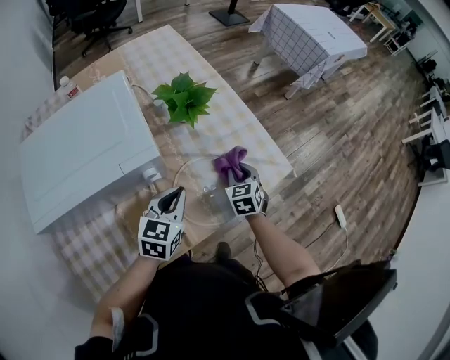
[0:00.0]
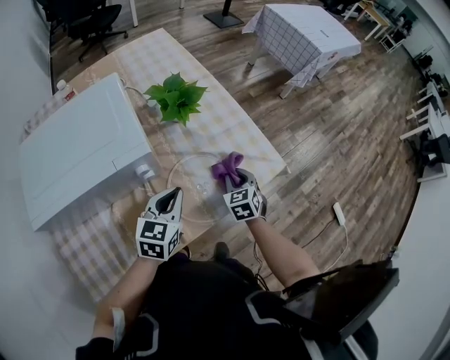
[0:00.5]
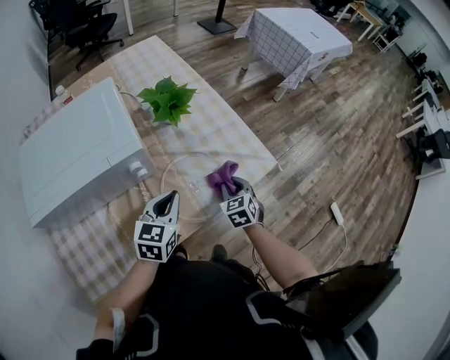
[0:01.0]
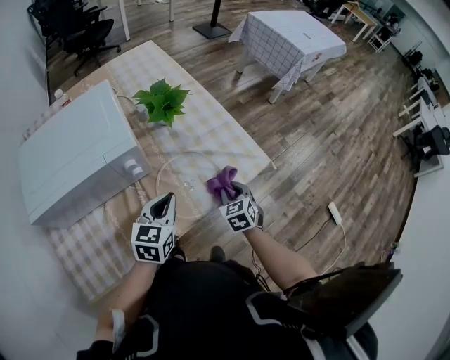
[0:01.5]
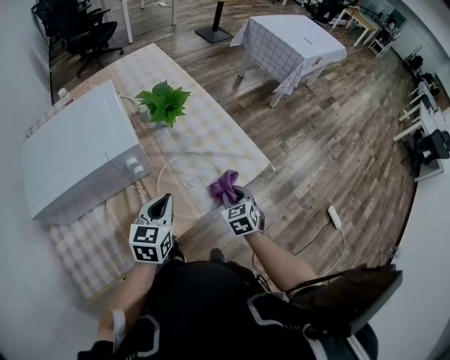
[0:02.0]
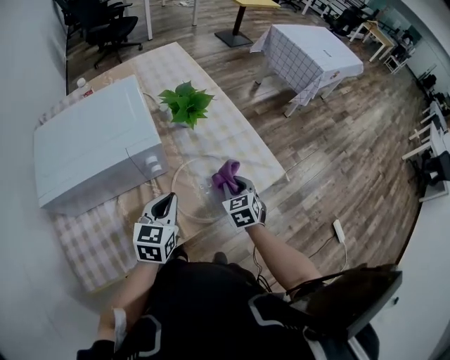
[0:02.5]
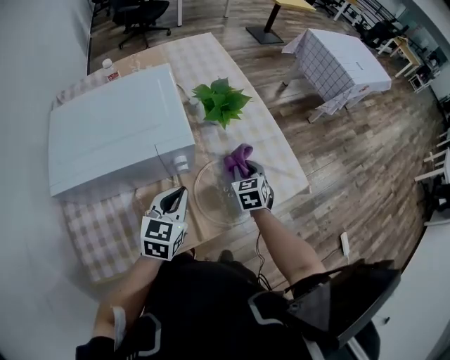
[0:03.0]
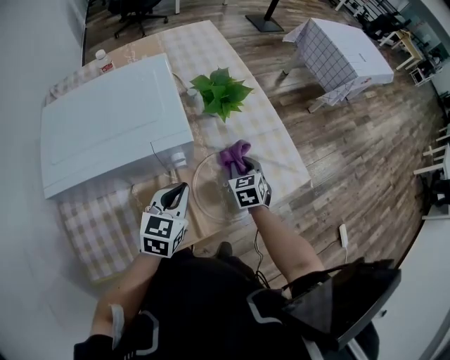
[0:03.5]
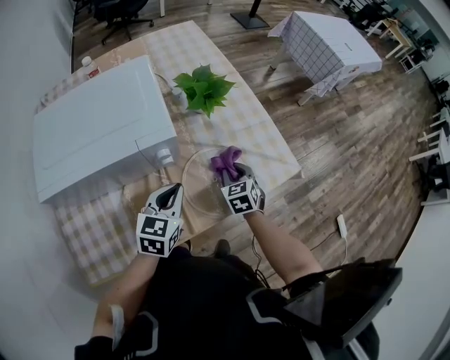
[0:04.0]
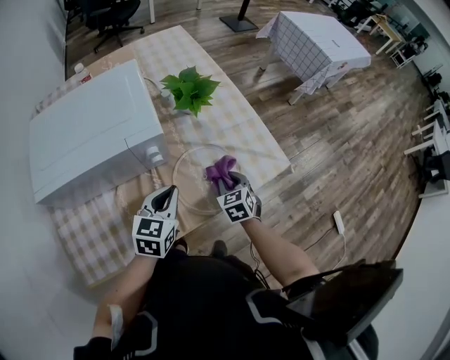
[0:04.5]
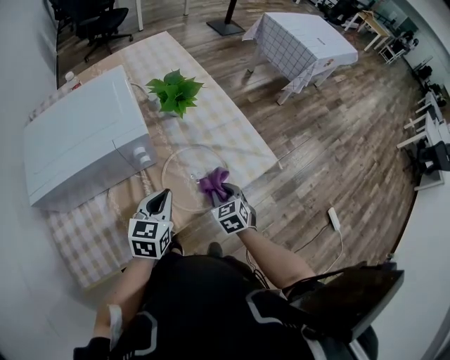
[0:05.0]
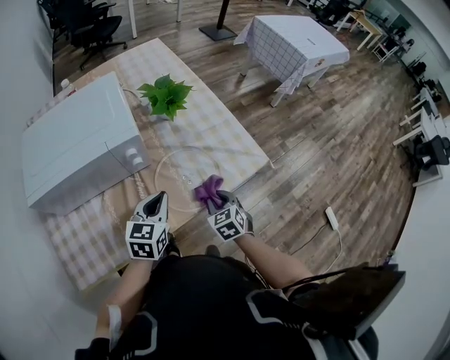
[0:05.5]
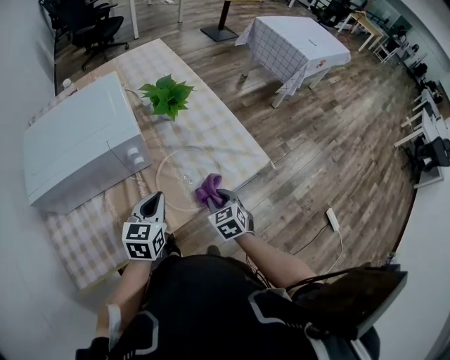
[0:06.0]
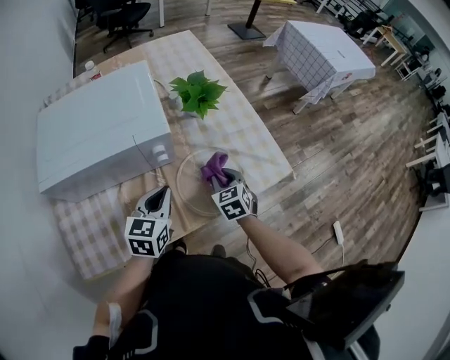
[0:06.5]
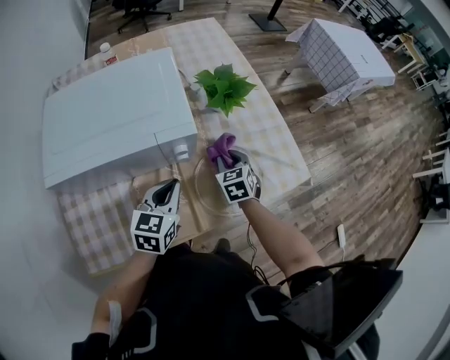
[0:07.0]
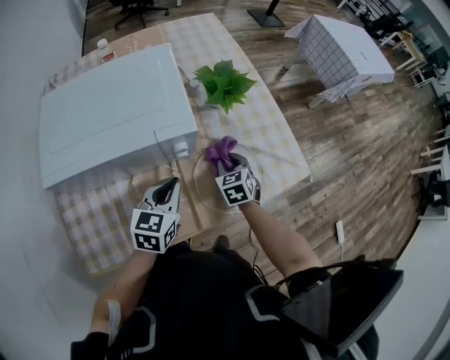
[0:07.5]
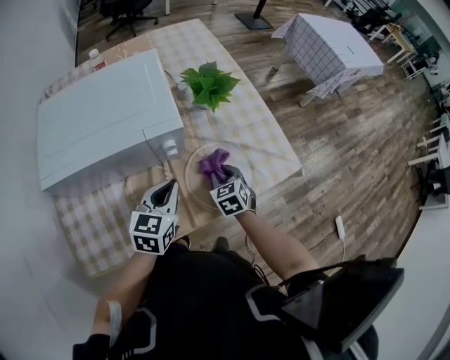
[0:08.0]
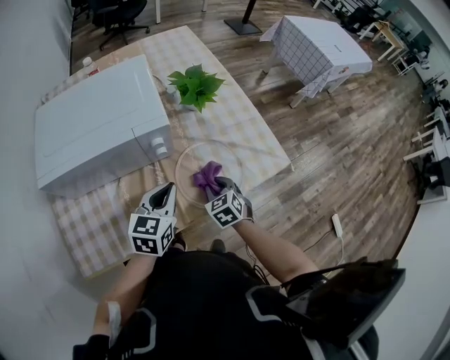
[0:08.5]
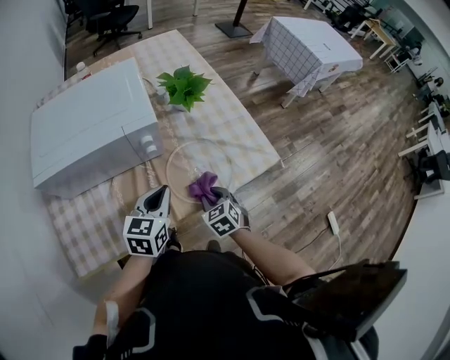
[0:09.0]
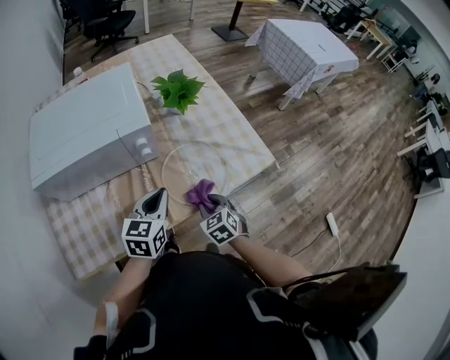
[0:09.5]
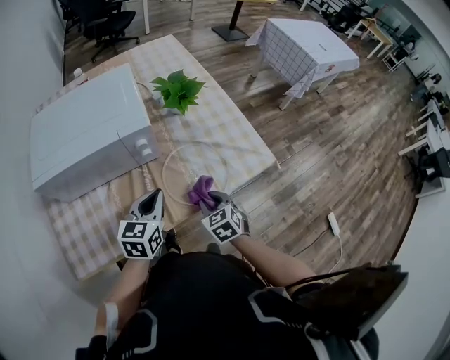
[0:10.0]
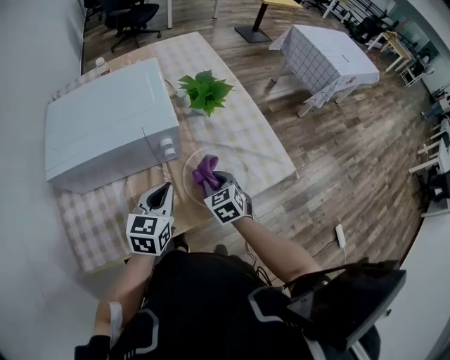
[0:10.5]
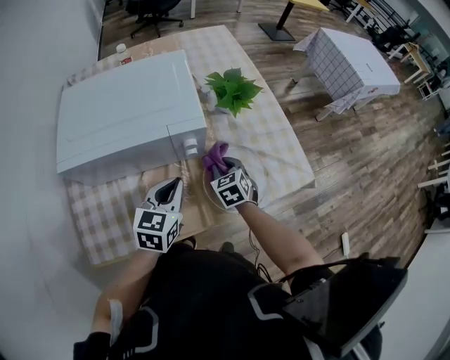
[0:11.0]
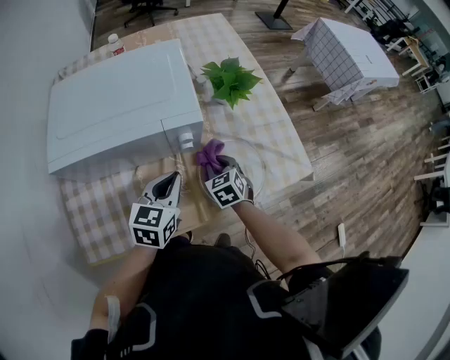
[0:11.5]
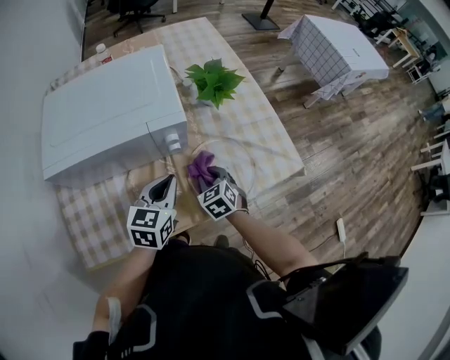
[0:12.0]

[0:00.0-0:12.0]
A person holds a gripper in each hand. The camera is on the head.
0:00.0 to 0:02.0: The right gripper travels backward and to the right by some 10 cm, while the left gripper travels backward by about 5 cm.
0:02.0 to 0:04.0: The right gripper travels to the left and forward by roughly 15 cm; the left gripper goes approximately 5 cm to the left.
0:04.0 to 0:06.0: The left gripper shifts by about 5 cm. Meanwhile the right gripper heads backward, covering roughly 10 cm.
0:06.0 to 0:08.0: The left gripper goes roughly 5 cm to the left. Meanwhile the right gripper goes approximately 15 cm to the left and forward.
0:08.0 to 0:10.0: The left gripper ends up roughly 5 cm from where it was. Meanwhile the right gripper moves backward, approximately 10 cm.
0:10.0 to 0:12.0: The left gripper moves roughly 5 cm. Meanwhile the right gripper heads forward and to the left, covering about 15 cm.

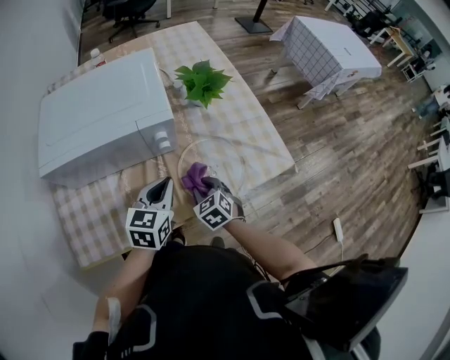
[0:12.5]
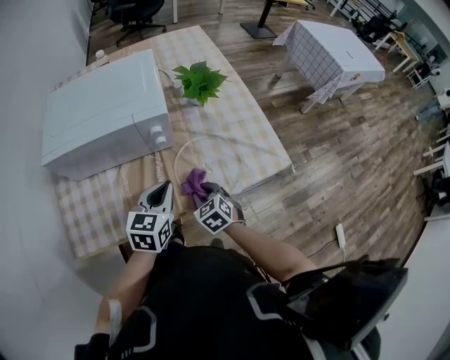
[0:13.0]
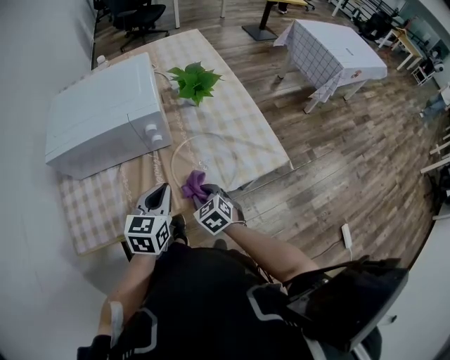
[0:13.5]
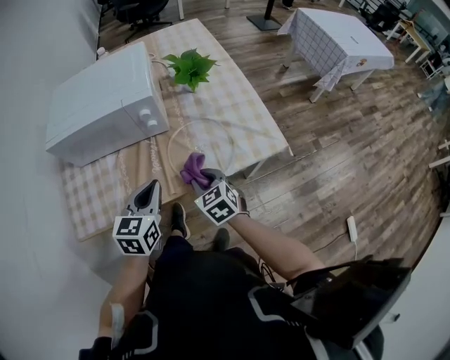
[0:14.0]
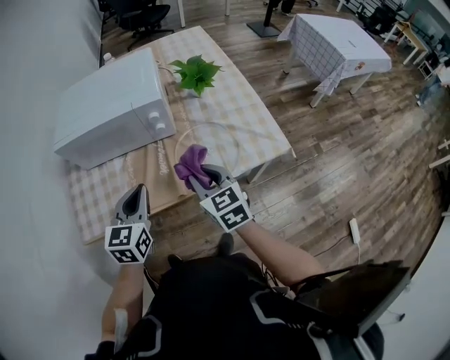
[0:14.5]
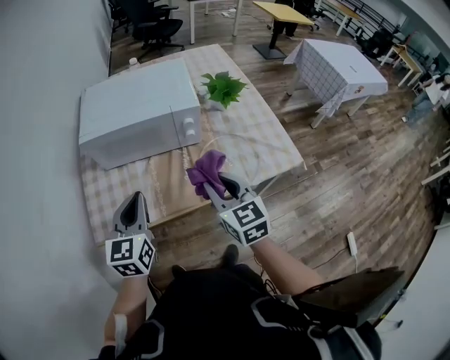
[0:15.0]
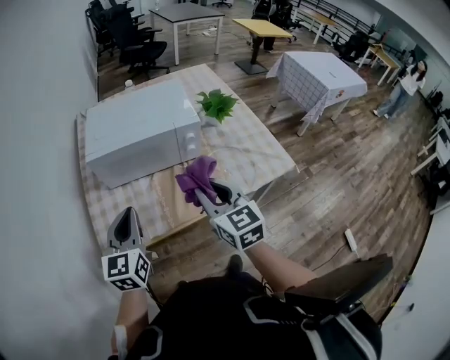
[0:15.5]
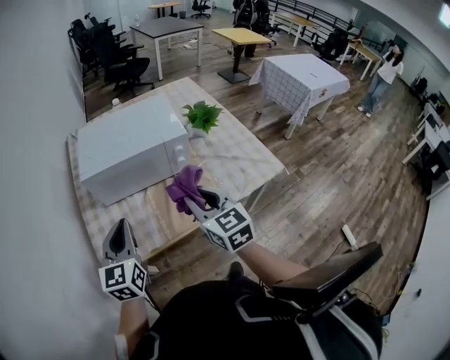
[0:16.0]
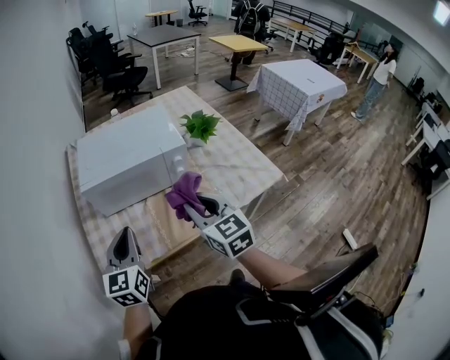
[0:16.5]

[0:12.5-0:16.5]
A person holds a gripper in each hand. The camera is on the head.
0:12.5 to 0:14.5: The right gripper travels upward and backward by roughly 20 cm, and swivels about 30 degrees. The left gripper shifts some 15 cm backward and upward.
0:14.5 to 0:16.5: The left gripper heads to the left and upward, covering some 20 cm. Meanwhile the right gripper is displaced upward and to the left by approximately 20 cm.

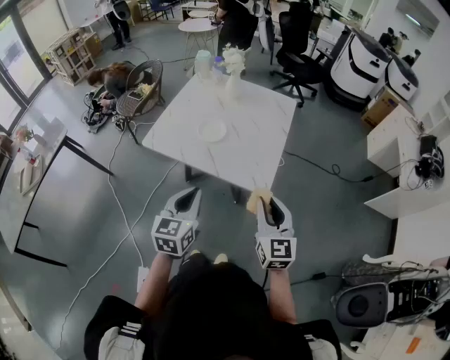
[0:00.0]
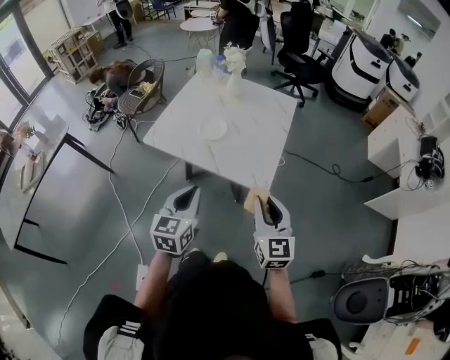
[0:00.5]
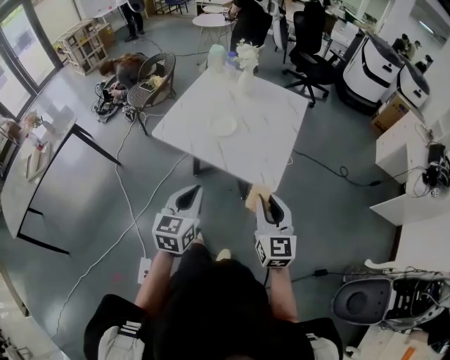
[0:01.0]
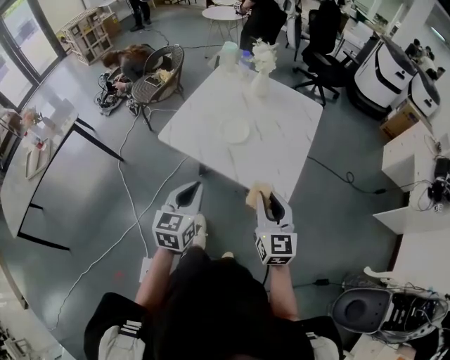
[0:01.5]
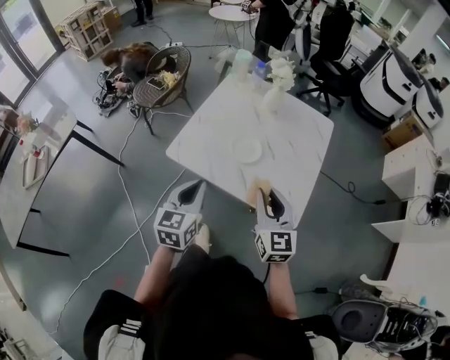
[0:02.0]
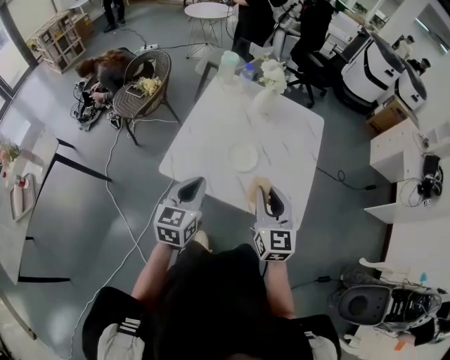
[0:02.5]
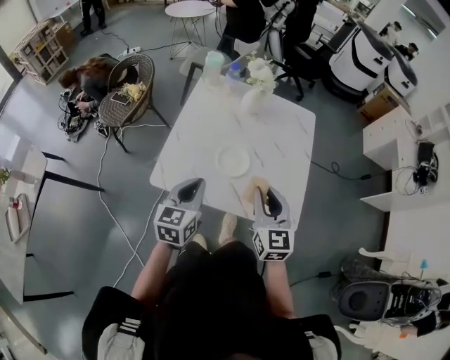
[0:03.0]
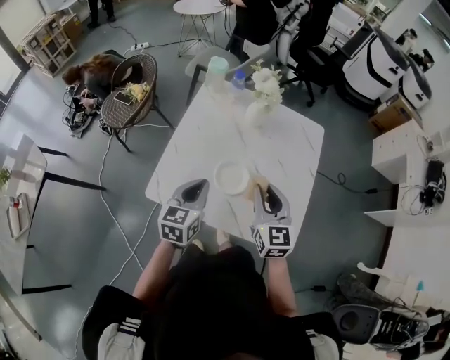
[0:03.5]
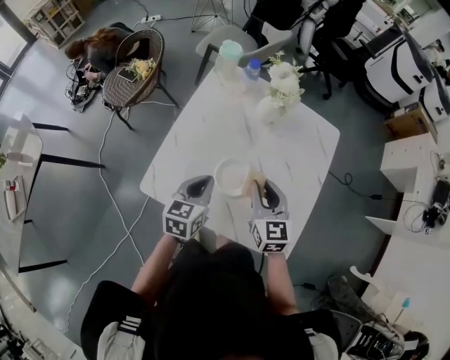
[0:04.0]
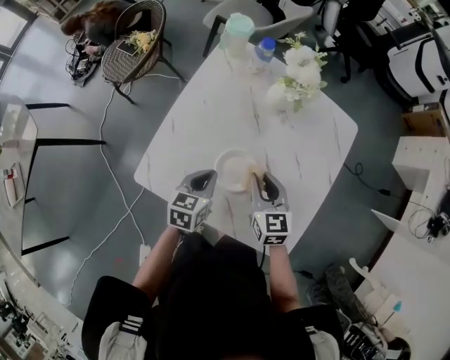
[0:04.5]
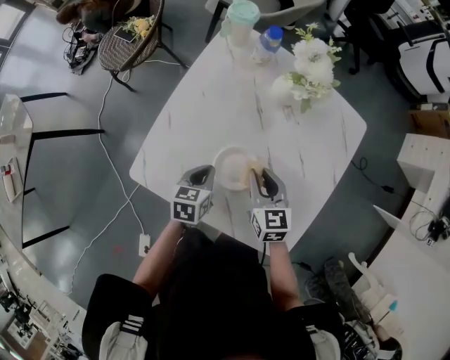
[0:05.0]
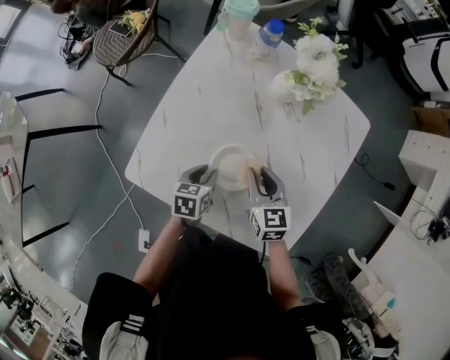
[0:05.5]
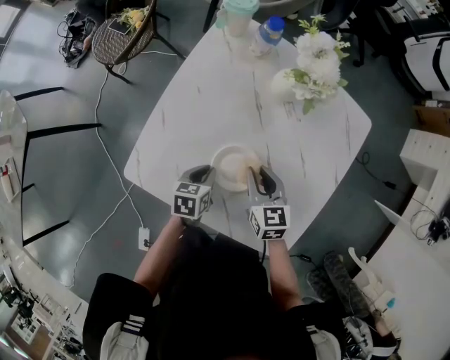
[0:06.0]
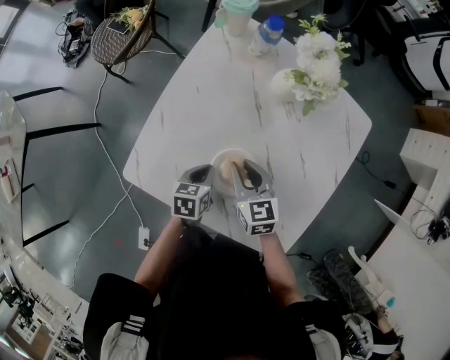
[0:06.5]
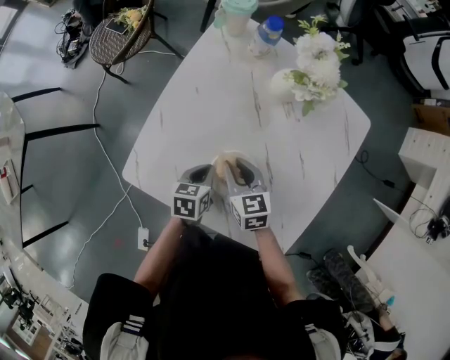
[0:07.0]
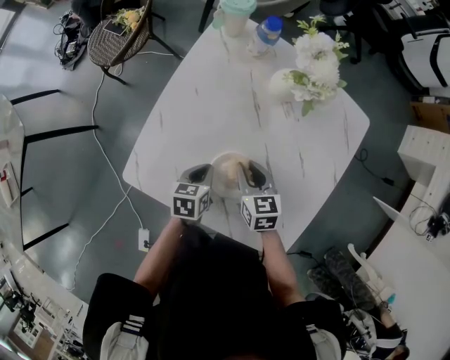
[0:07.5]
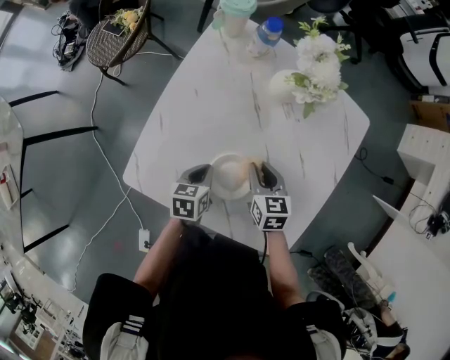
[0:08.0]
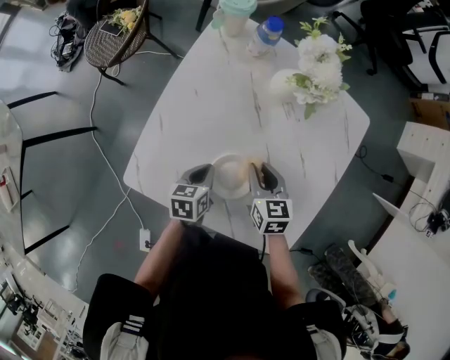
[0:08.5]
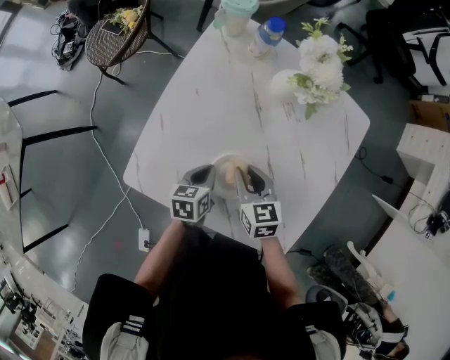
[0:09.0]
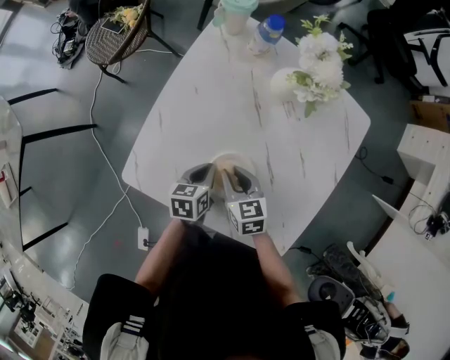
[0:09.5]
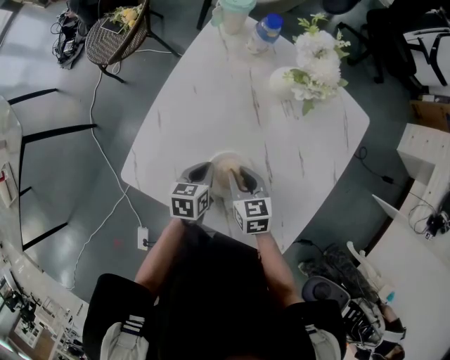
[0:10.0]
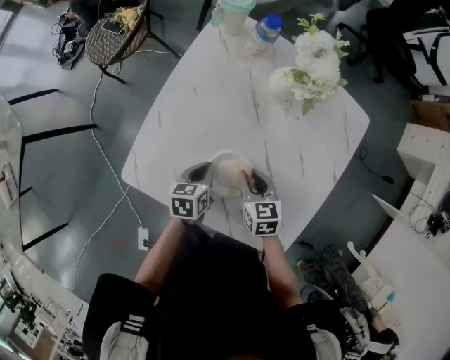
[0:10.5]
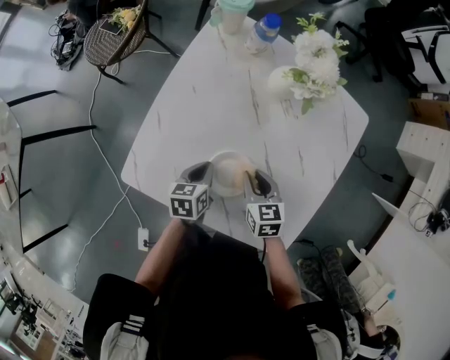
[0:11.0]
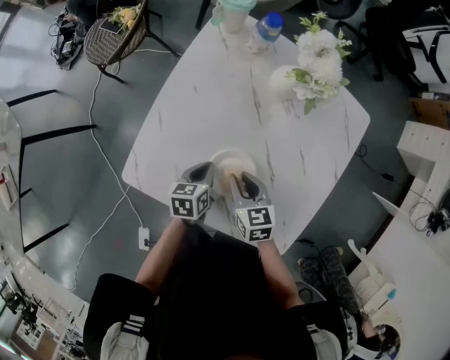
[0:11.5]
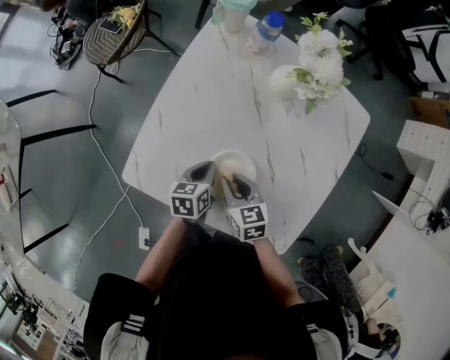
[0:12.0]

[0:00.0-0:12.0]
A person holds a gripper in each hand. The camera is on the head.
0:00.0 to 0:02.0: Both grippers travel together forward and to the left, roughly 25 cm.
0:02.0 to 0:04.0: The right gripper moves forward, roughly 25 cm; the left gripper heads forward and downward, covering about 30 cm.
0:04.0 to 0:06.0: Both grippers move downward, approximately 15 cm. The left gripper turns by some 30 degrees.
0:06.0 to 0:08.0: The right gripper reaches roughly 5 cm to the left, then returns.
0:08.0 to 0:10.0: The right gripper shifts roughly 5 cm to the left.
0:10.0 to 0:12.0: The grippers make only small movements.
